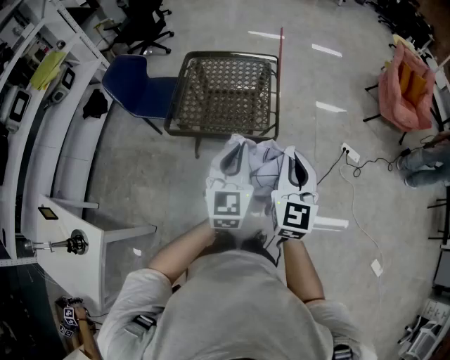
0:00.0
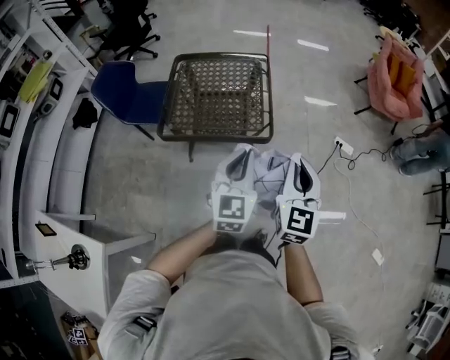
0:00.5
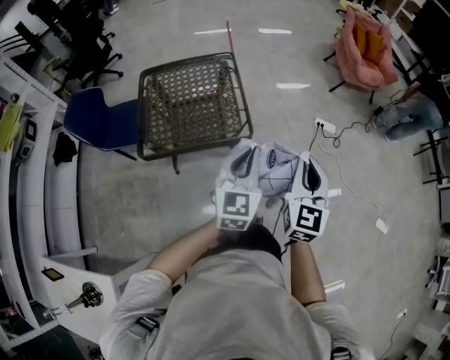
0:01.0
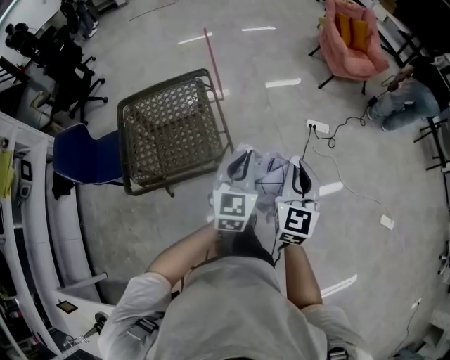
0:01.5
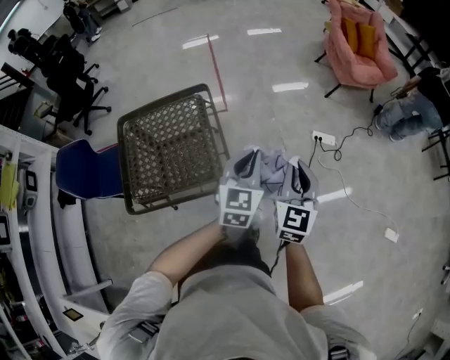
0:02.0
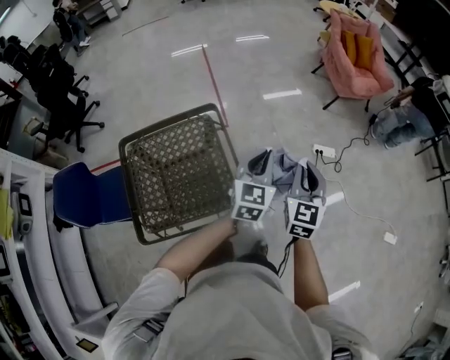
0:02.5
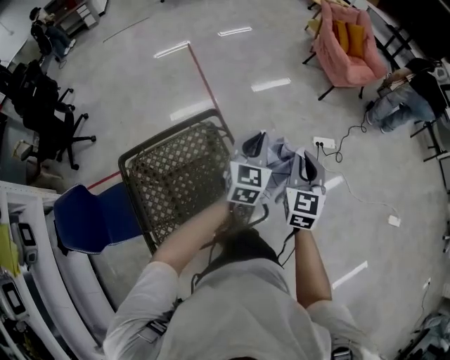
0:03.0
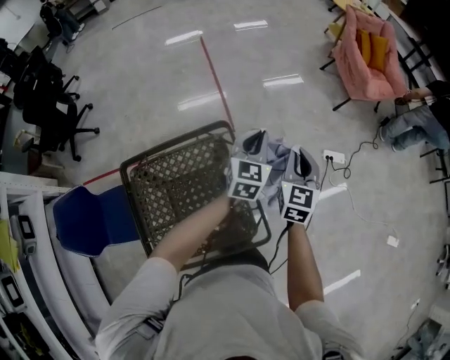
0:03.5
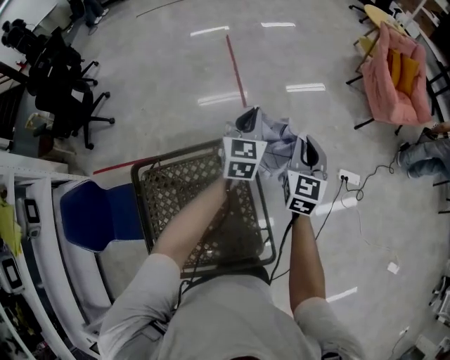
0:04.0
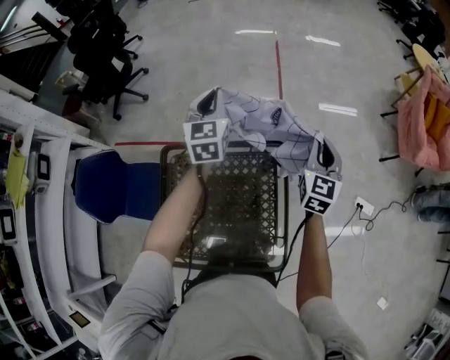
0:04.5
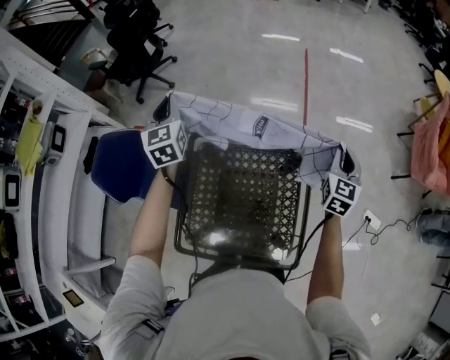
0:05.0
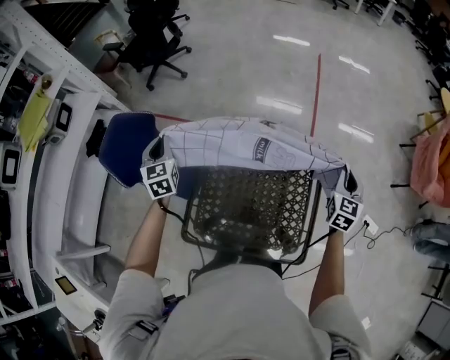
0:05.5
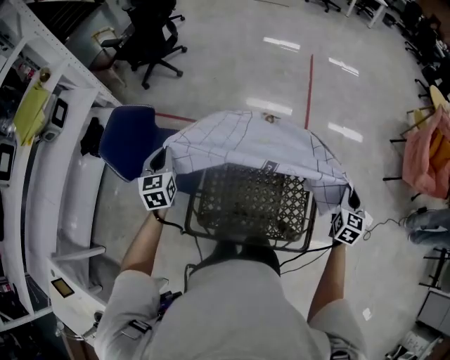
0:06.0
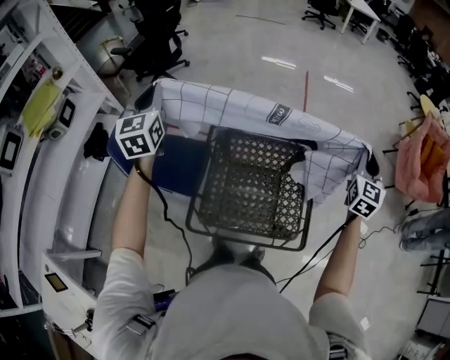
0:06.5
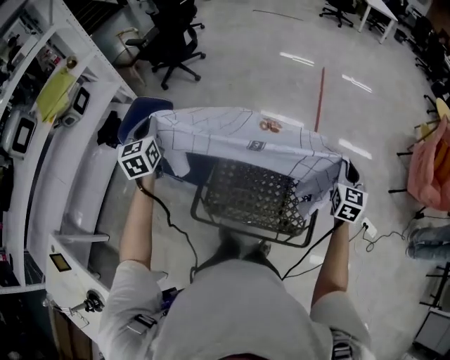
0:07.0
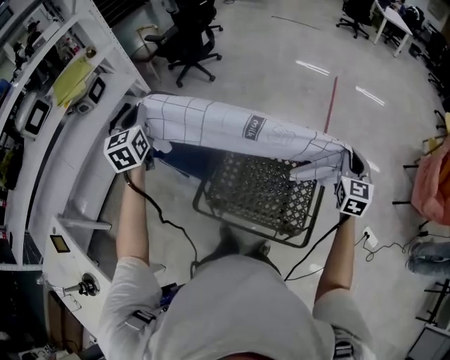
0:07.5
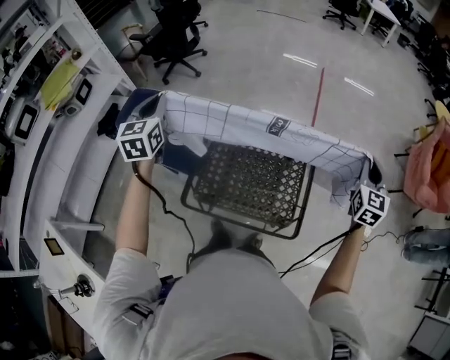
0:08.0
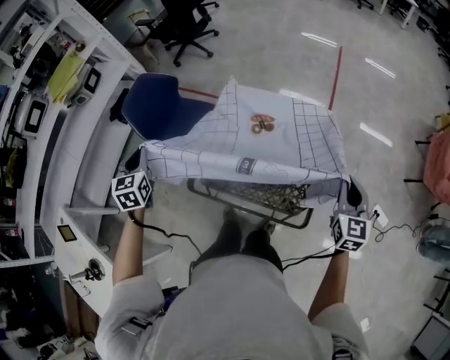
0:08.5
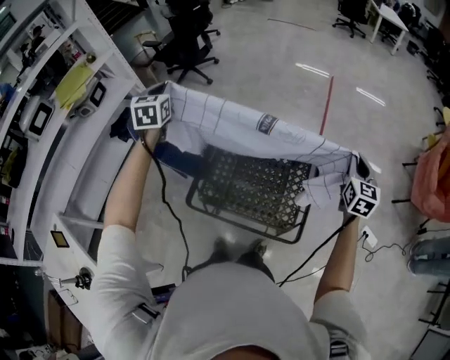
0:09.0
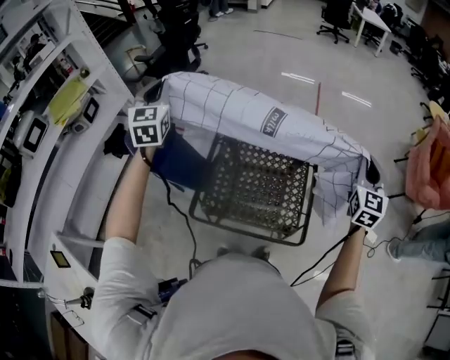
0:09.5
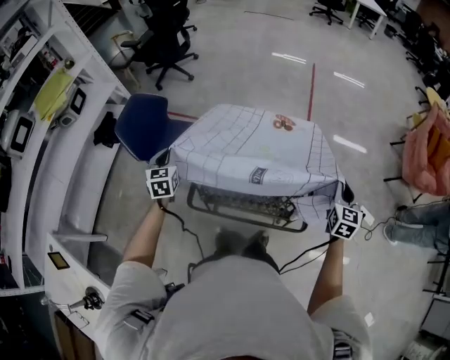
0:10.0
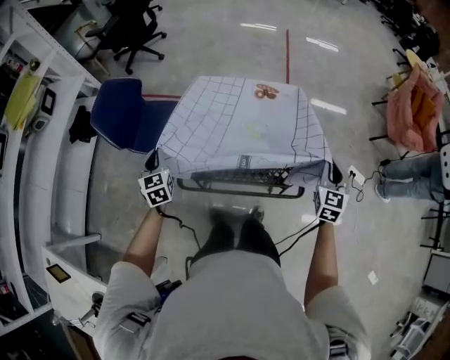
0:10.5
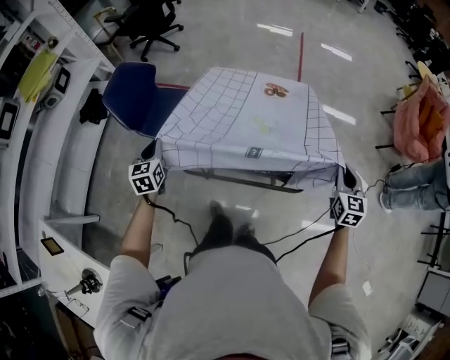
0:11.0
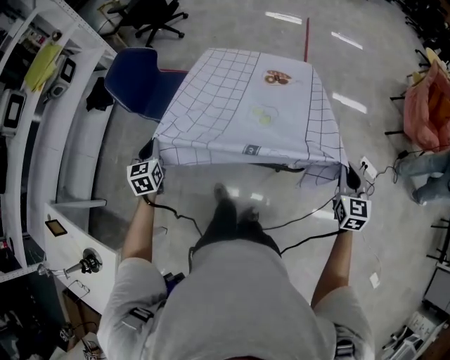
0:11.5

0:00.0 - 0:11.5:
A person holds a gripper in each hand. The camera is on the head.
0:00.0 - 0:02.0: The left gripper moves roughly 35 cm, and changes its angle by approximately 30 degrees. The right gripper changes place by about 30 cm, and swivels roughly 30 degrees.
0:02.0 - 0:04.0: Both grippers are carried forward and to the left, roughly 50 cm.
0:04.0 - 0:06.0: The left gripper shifts by approximately 70 cm, and rotates some 40 degrees. The right gripper moves some 25 cm.
0:06.0 - 0:07.5: The right gripper moves up and down over approximately 20 cm, changing direction 2 times, and turns by some 20 degrees; the left gripper swings up and down, roughly 25 cm each way, with 2 reversals.
0:07.5 - 0:09.5: The right gripper is displaced backward, to the right and upward by approximately 15 cm. The left gripper moves to the right, about 10 cm, goes downward and returns, about 15 cm each way, and turns by approximately 20 degrees.
0:09.5 - 0:11.5: The left gripper shifts roughly 30 cm downward and backward, and points its fingers approximately 30 degrees further downward. Meanwhile the right gripper is displaced downward by roughly 20 cm, and changes its angle by some 30 degrees.

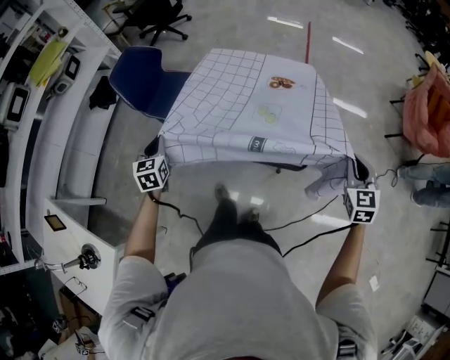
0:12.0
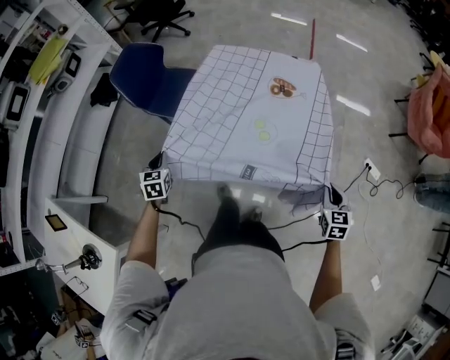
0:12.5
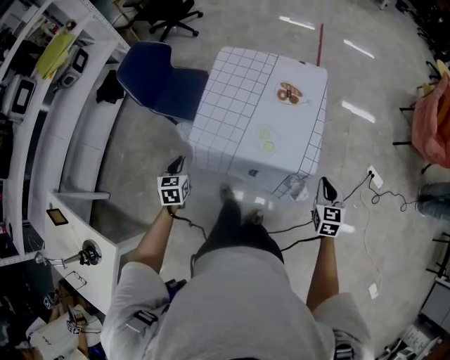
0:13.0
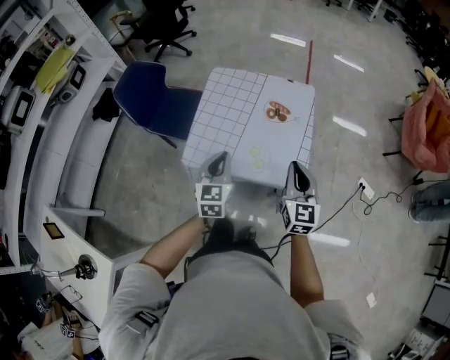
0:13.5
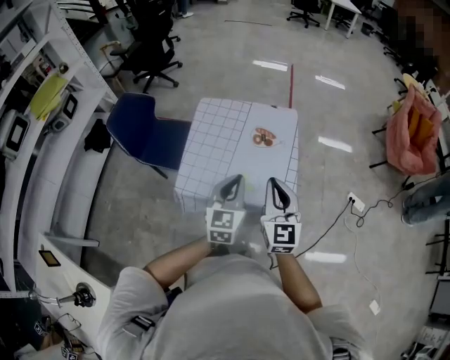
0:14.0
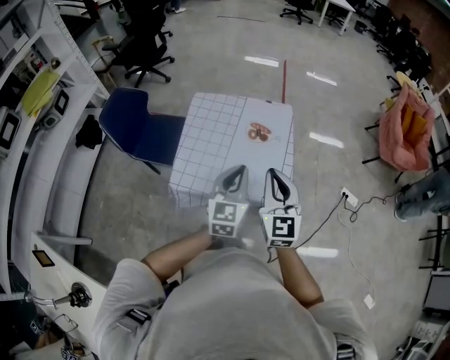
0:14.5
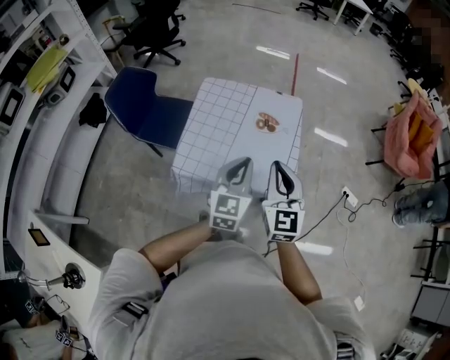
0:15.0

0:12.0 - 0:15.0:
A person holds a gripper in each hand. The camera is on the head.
0:12.0 - 0:13.5: The right gripper travels to the left and forward by some 15 cm, and changes its angle by roughly 20 degrees. The left gripper shifts approximately 25 cm to the right.
0:13.5 - 0:15.0: The right gripper travels upward and to the left by roughly 10 cm, while the left gripper travels to the right and upward by roughly 10 cm.

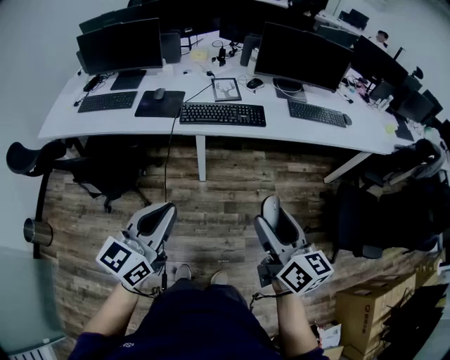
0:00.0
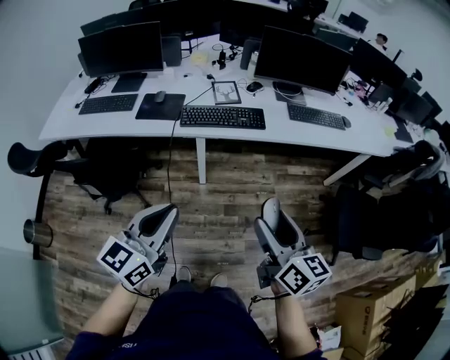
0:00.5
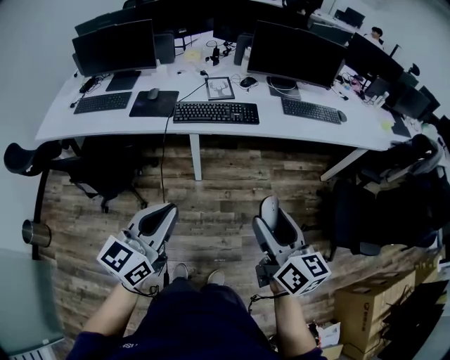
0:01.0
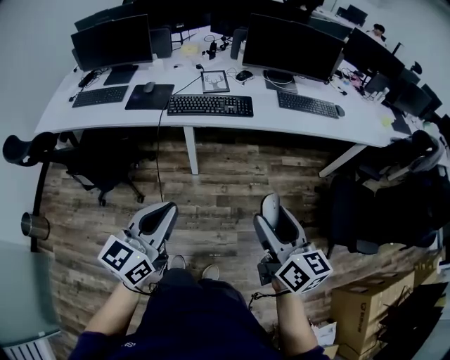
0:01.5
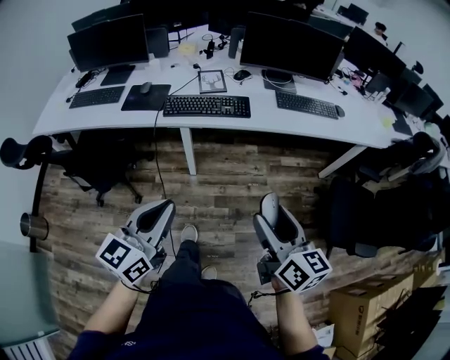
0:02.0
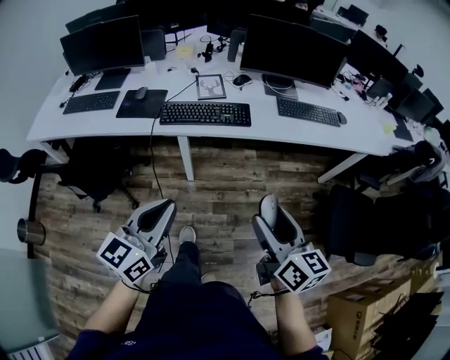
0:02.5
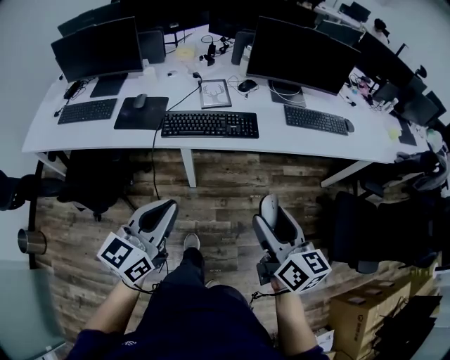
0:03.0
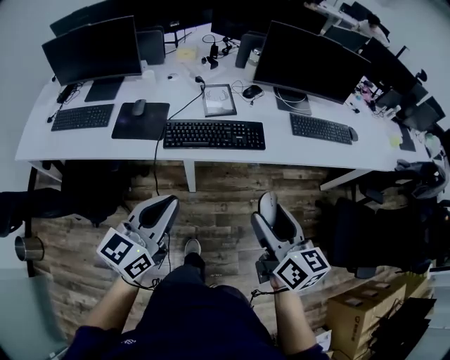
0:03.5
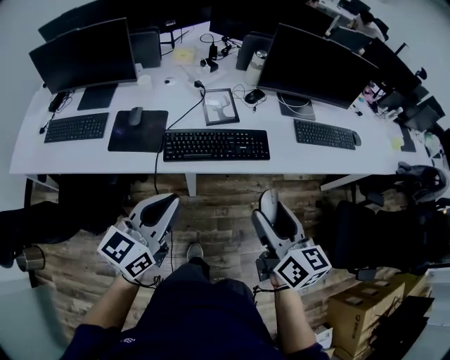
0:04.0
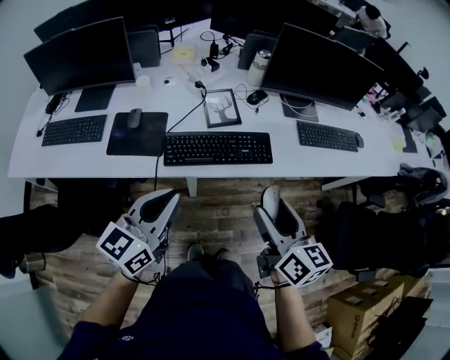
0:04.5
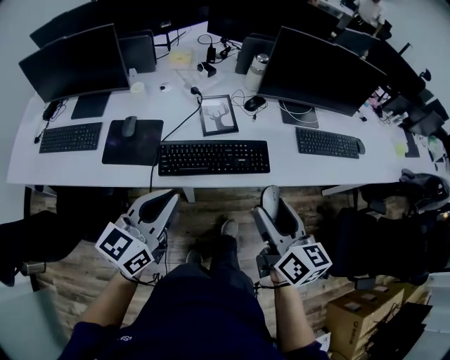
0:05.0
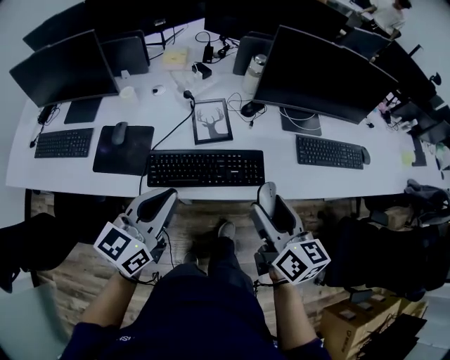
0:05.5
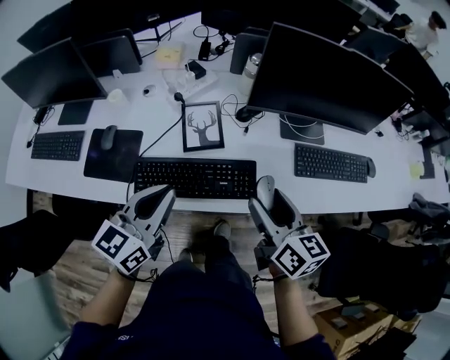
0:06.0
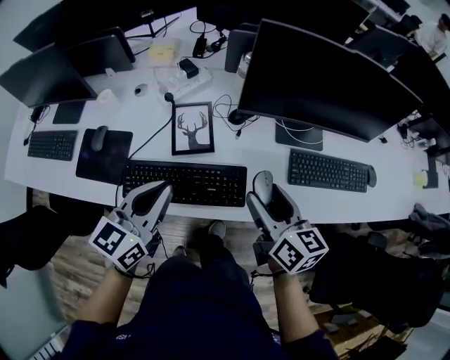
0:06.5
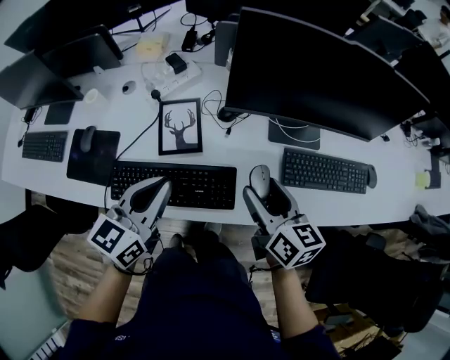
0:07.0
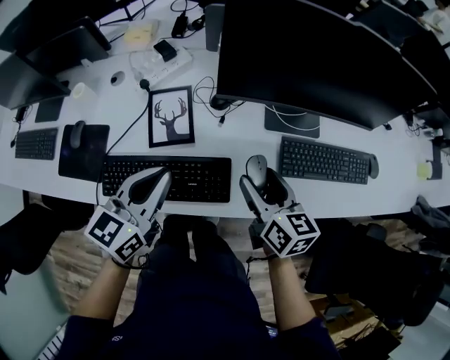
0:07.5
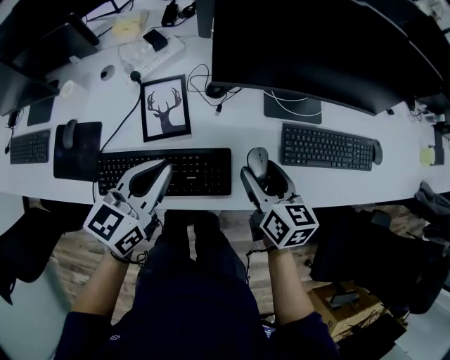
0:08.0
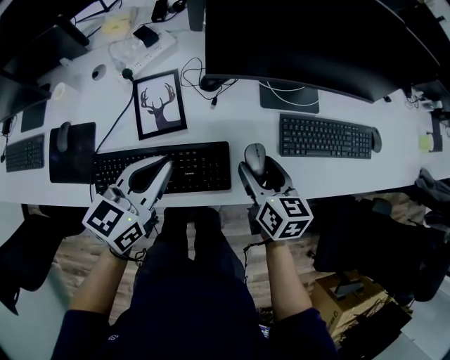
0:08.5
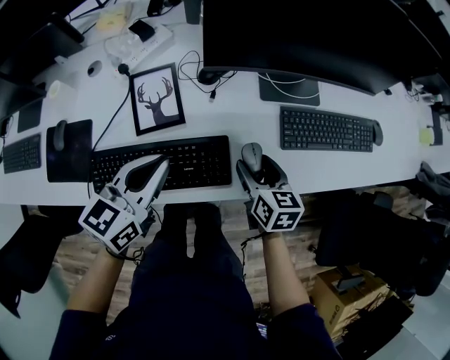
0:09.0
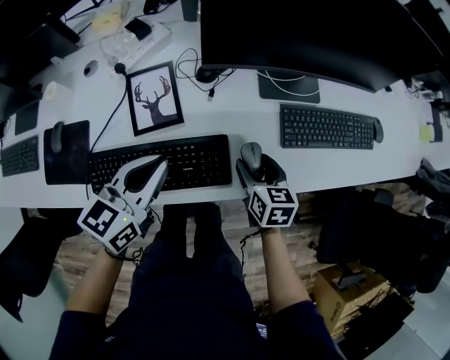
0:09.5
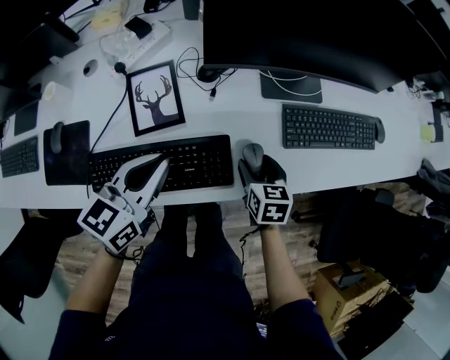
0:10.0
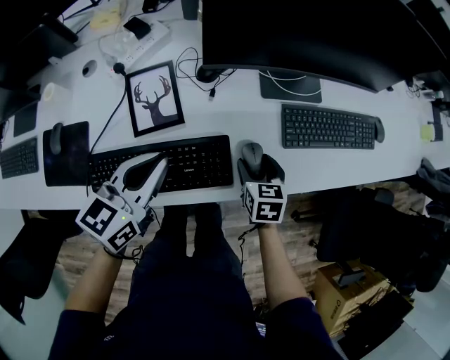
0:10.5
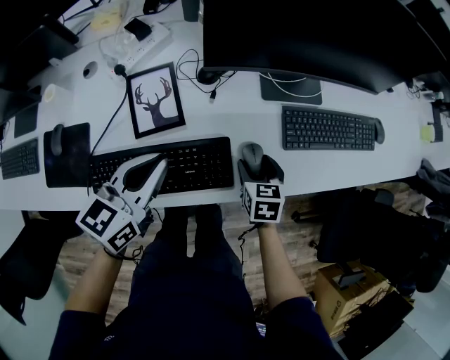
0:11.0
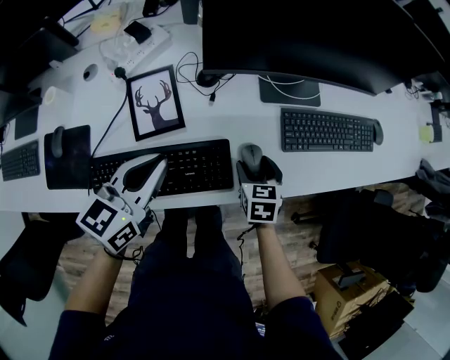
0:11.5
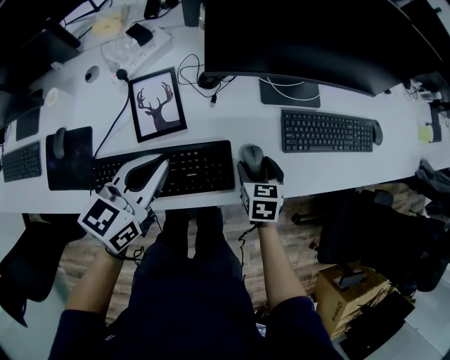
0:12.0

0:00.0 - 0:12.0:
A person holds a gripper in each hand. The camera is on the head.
0:00.0 - 0:02.0: The two grippers go approximately 10 cm to the right.
0:02.0 - 0:04.0: Both grippers travel together forward and to the left, roughly 30 cm.
0:04.0 - 0:06.0: The two grippers go about 25 cm forward.
0:06.0 - 0:08.0: The left gripper is displaced forward, to the right and downward by some 15 cm; the right gripper heads downward, forward and to the right, covering roughly 20 cm.
0:08.0 - 0:10.0: The right gripper goes roughly 10 cm downward, and rotates approximately 20 degrees.
0:10.0 - 0:12.0: There are only small adjustments of the grippers.
